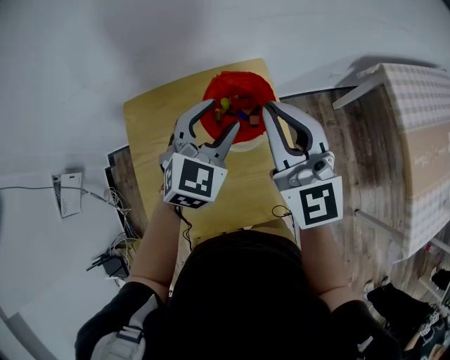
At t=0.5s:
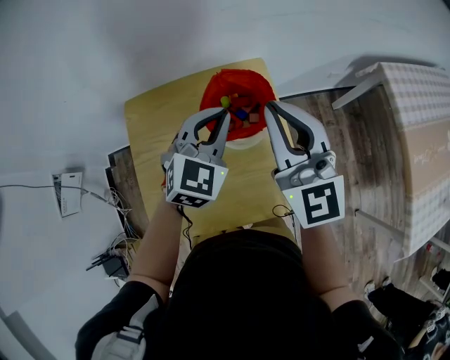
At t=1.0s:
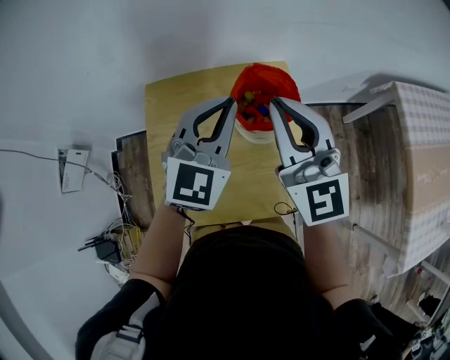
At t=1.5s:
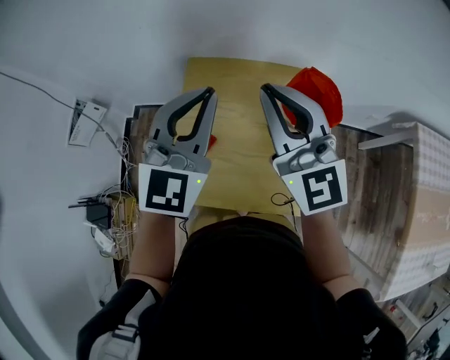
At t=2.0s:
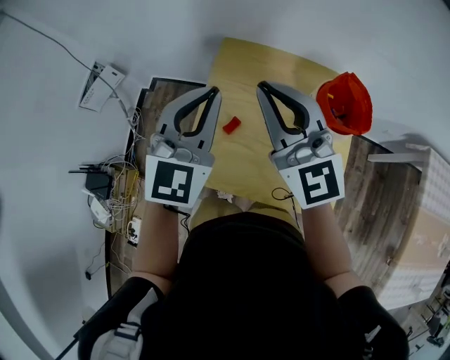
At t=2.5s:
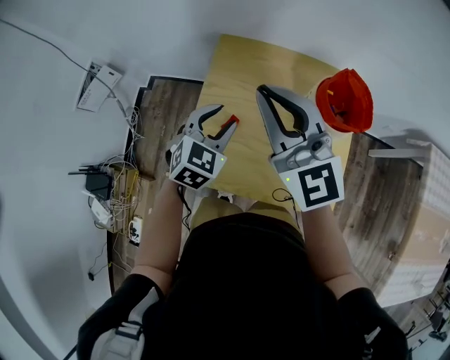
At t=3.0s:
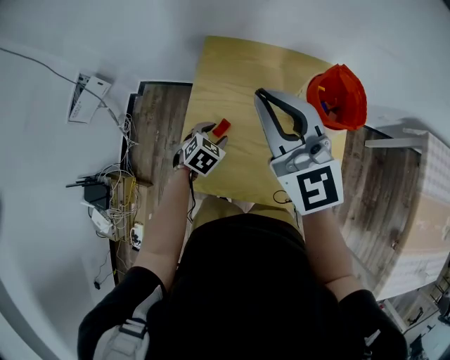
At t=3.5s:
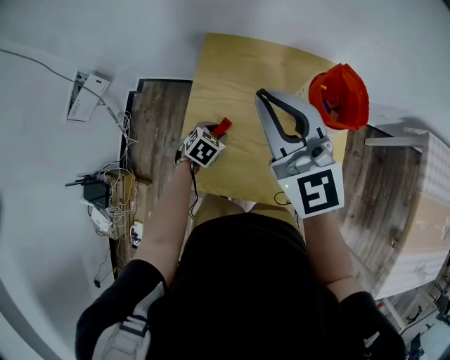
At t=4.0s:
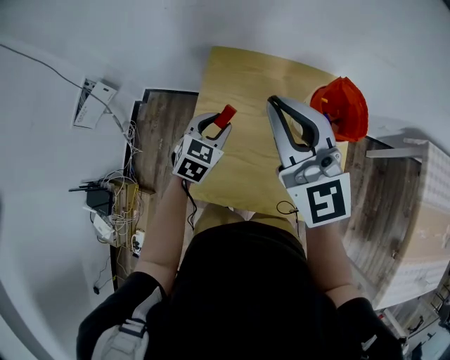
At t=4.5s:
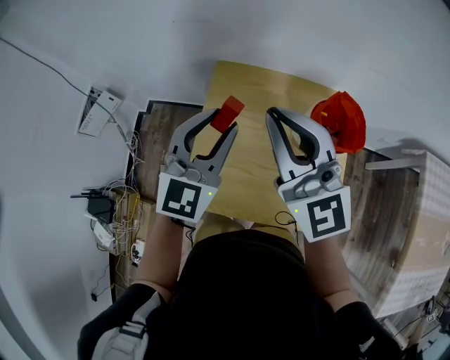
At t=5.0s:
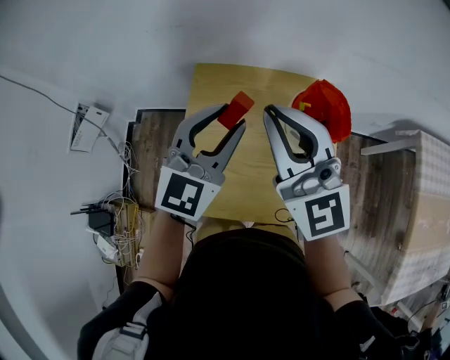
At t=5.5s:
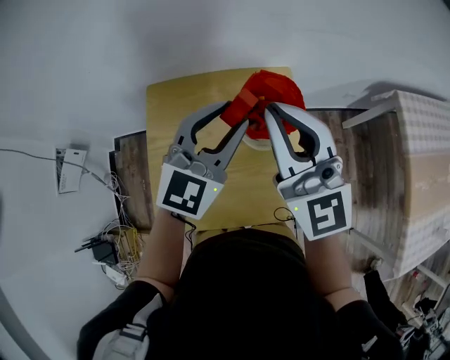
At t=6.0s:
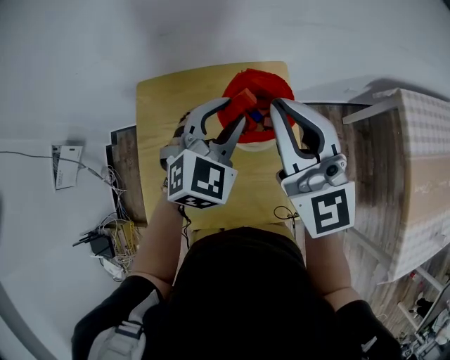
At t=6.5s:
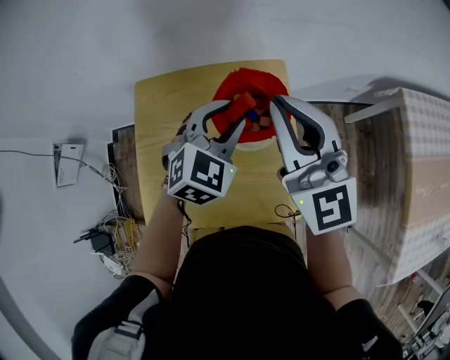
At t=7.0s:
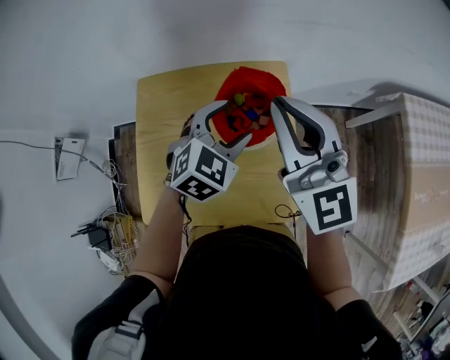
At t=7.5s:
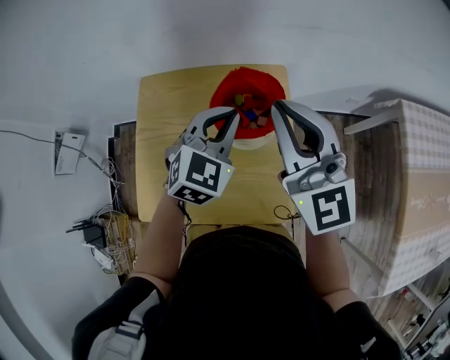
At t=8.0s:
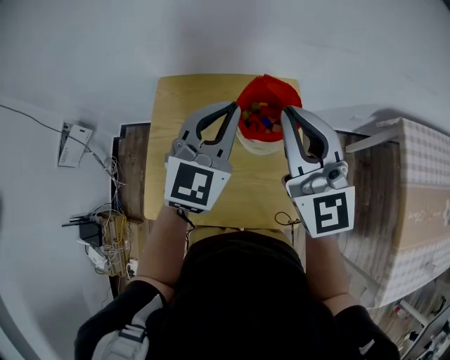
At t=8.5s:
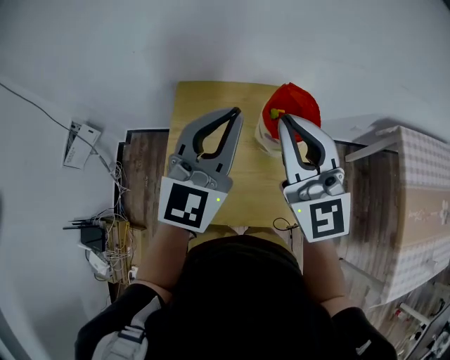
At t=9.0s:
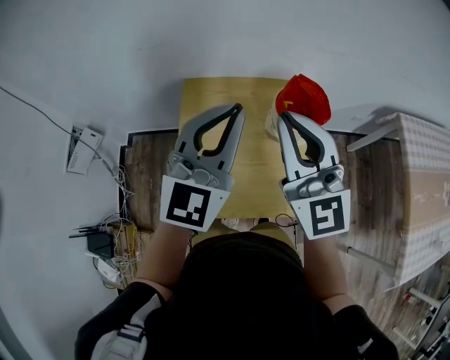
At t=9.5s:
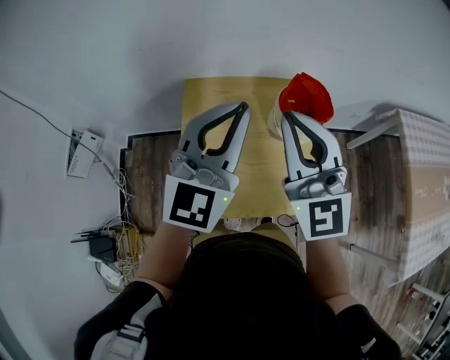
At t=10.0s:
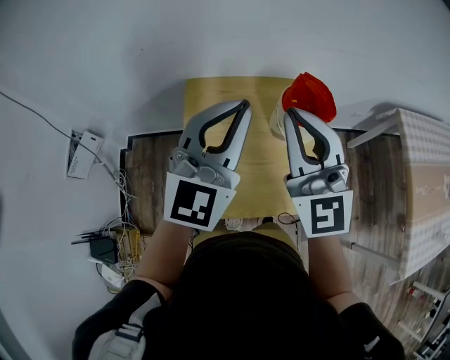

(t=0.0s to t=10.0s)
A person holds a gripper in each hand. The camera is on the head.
t=0.0s - t=2.0s: The left gripper shifts by some 30 cm, swivels roughly 40 degrees, and closes up, while the right gripper moves roughly 30 cm, and changes its angle by some 30 degrees.
t=2.0s - t=4.0s: The left gripper goes some 25 cm downward, points its fingers approximately 30 degrees further downward, and opens up.
t=4.0s - t=6.0s: The right gripper goes about 20 cm to the right, while the left gripper heads to the right and upward, covering some 30 cm, and turns by approximately 30 degrees.
t=6.0s - t=8.0s: The left gripper travels upward by about 10 cm, swivels about 30 degrees, and closes.
t=8.0s - t=10.0s: The right gripper heads to the left and backward, covering about 15 cm; the left gripper goes some 20 cm to the left, backward and upward.

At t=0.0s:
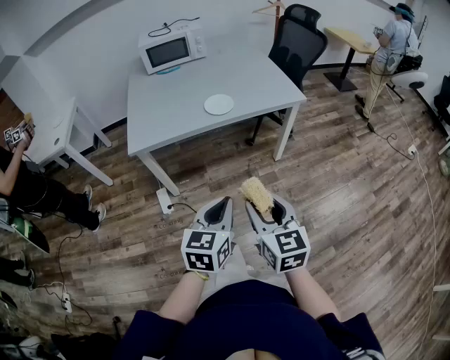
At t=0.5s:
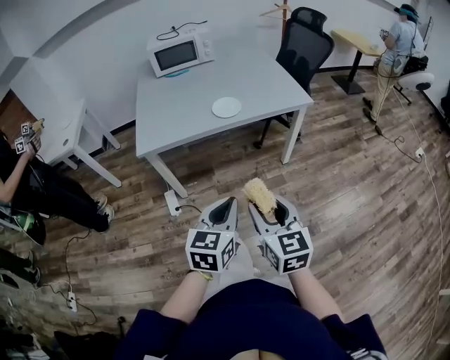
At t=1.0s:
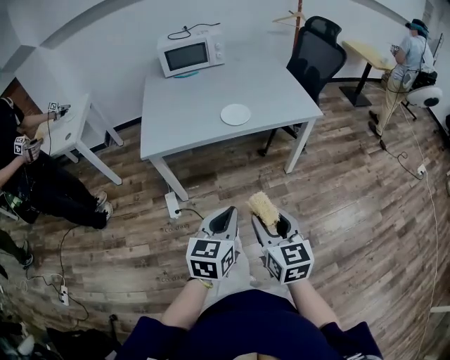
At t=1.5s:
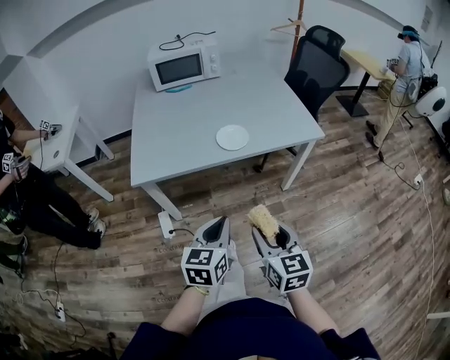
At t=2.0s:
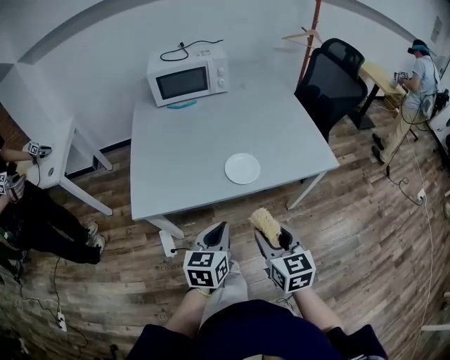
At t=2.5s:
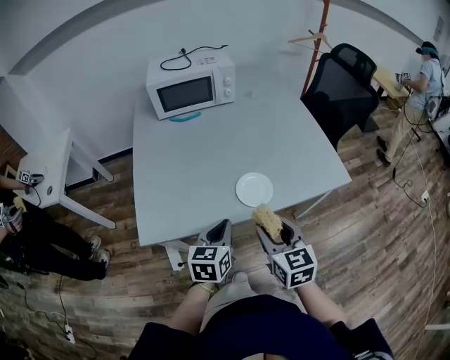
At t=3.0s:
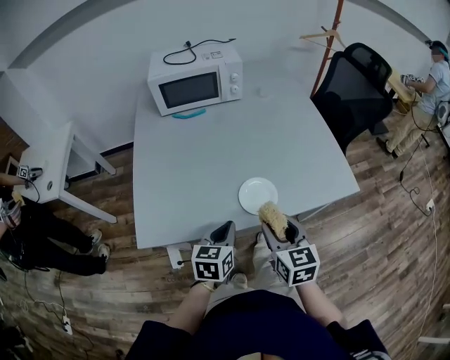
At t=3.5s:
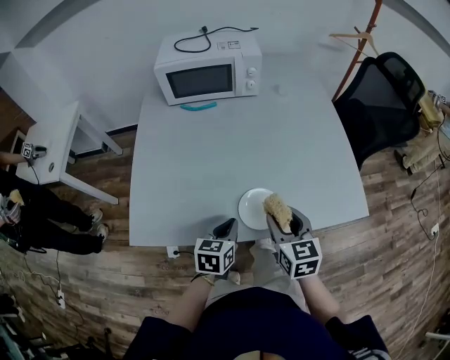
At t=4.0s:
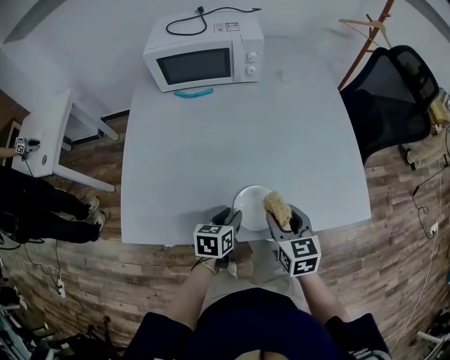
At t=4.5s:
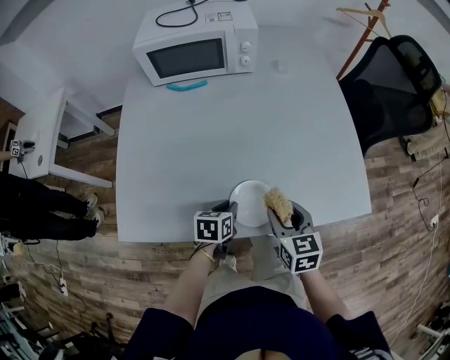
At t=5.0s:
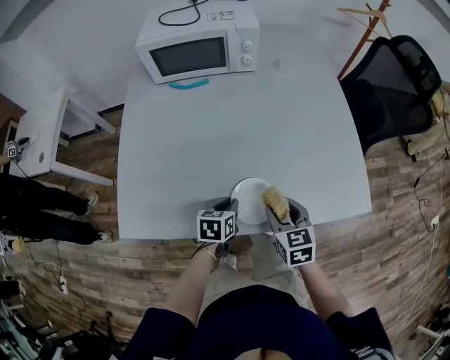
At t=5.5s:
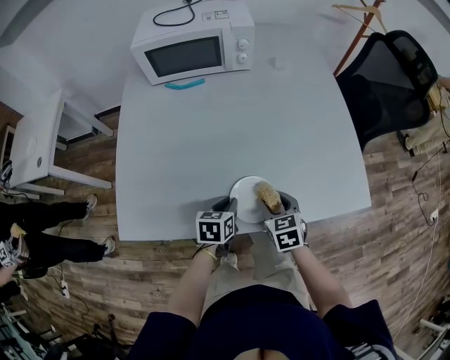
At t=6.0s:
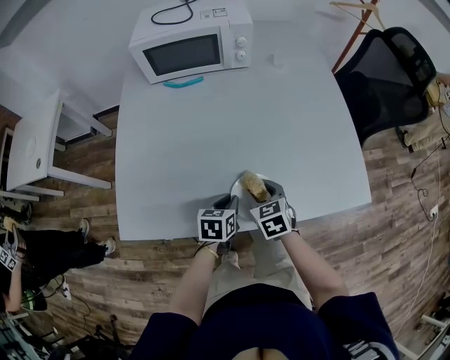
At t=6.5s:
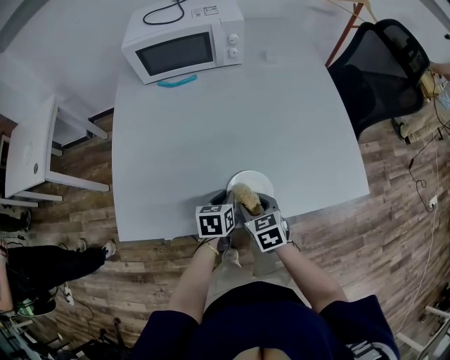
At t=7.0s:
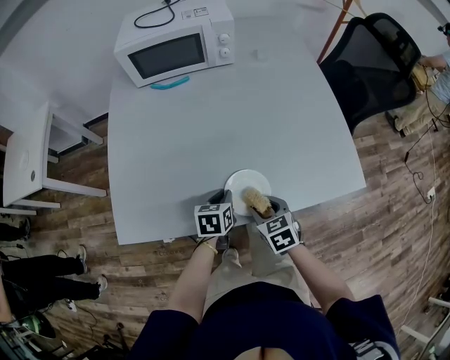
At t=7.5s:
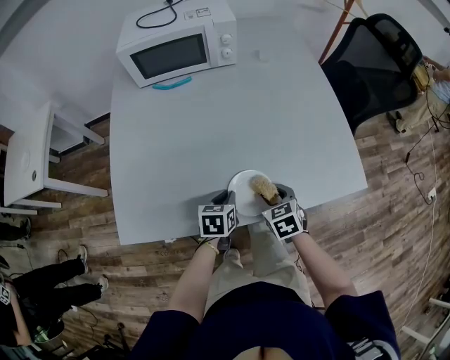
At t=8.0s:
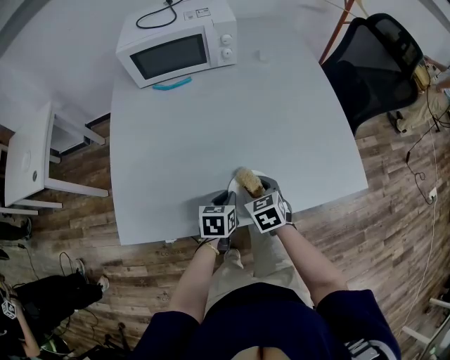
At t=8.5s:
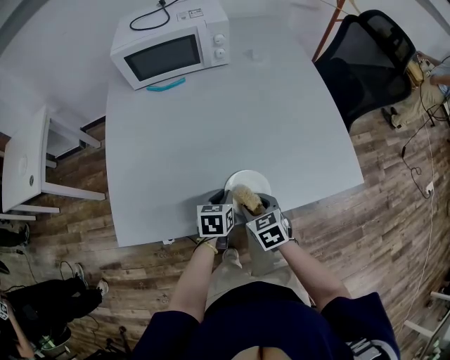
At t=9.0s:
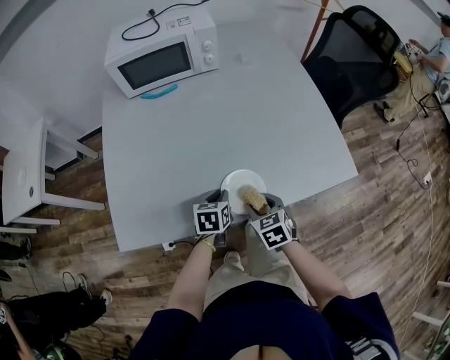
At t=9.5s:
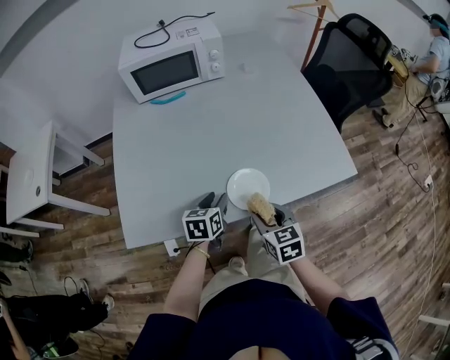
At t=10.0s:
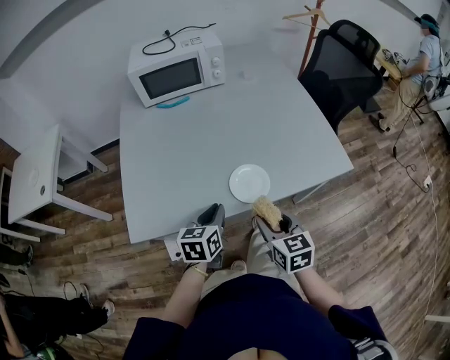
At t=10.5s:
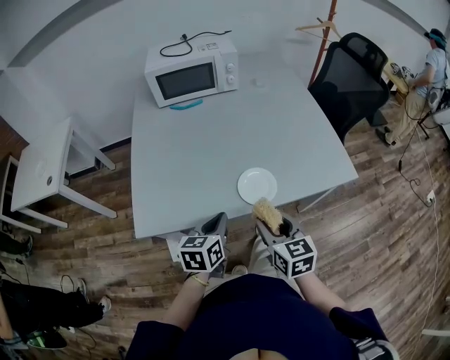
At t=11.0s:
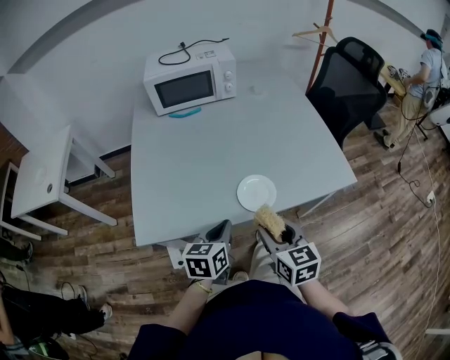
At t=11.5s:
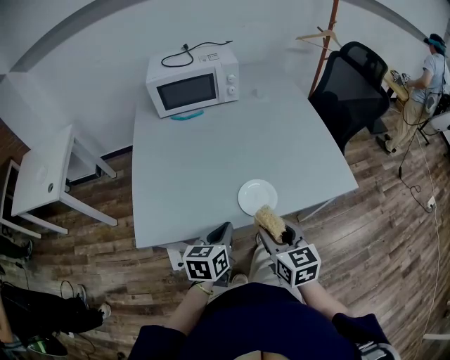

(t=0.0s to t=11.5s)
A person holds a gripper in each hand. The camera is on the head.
t=0.0s - t=2.0s: Both grippers move forward, approximately 30 cm.
t=2.0s - t=4.0s: The left gripper travels forward and downward by roughly 30 cm, swivels roughly 20 degrees, and opens its fingers. Meanwhile the right gripper heads forward, covering some 30 cm.
t=4.0s - t=6.0s: The right gripper travels downward and to the left by roughly 10 cm.
t=6.0s - t=7.5s: The right gripper goes approximately 5 cm to the right.
t=7.5s - t=9.5s: The left gripper ends up some 5 cm from where it was, and opens up. Meanwhile the right gripper moves backward and upward, approximately 10 cm.
t=9.5s - t=11.5s: The right gripper heads upward and backward, covering about 10 cm. Meanwhile the left gripper travels backward and upward by approximately 15 cm, and closes.

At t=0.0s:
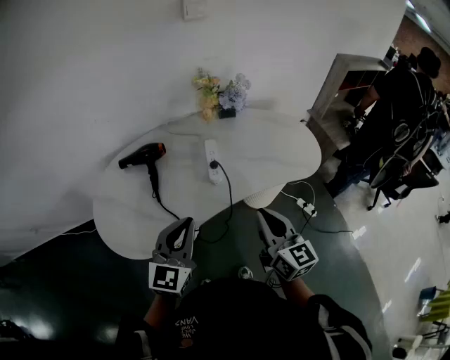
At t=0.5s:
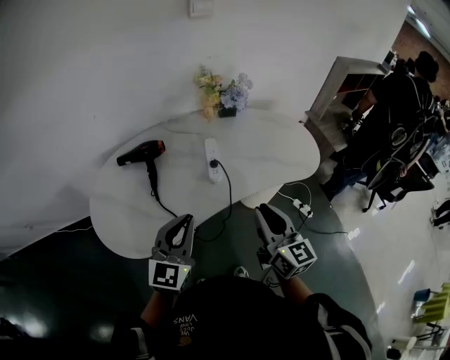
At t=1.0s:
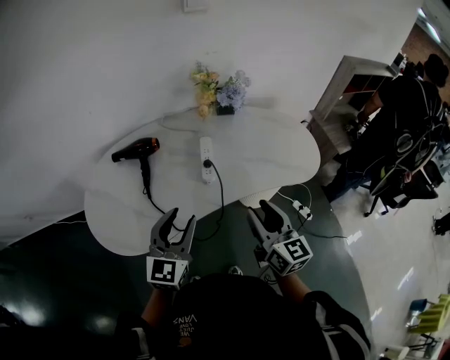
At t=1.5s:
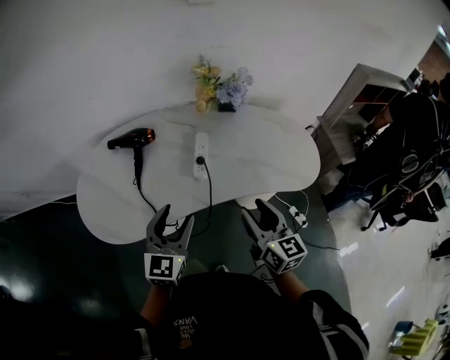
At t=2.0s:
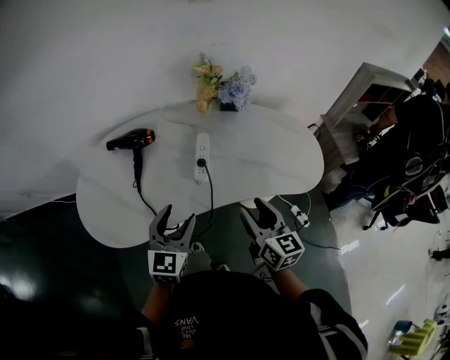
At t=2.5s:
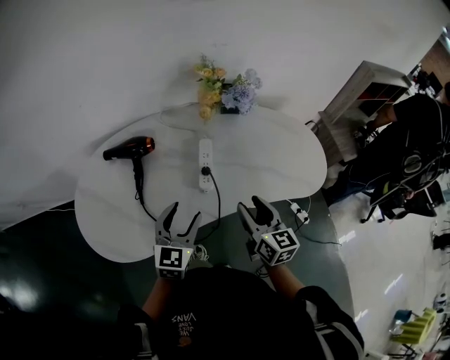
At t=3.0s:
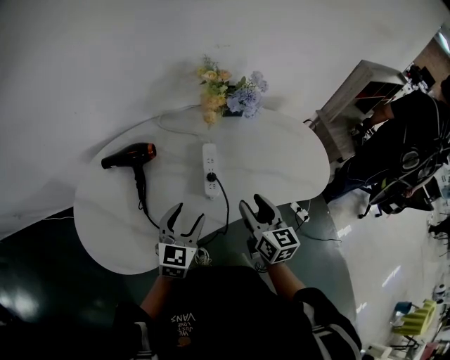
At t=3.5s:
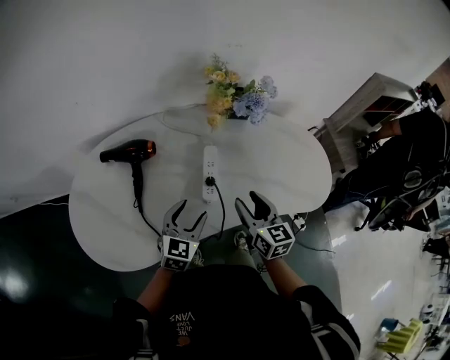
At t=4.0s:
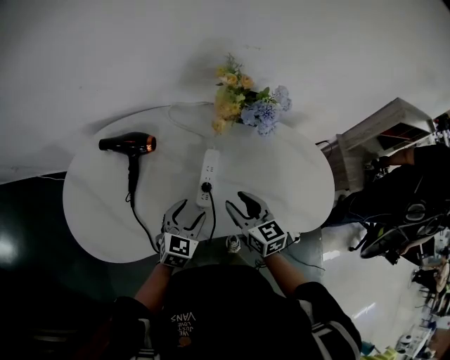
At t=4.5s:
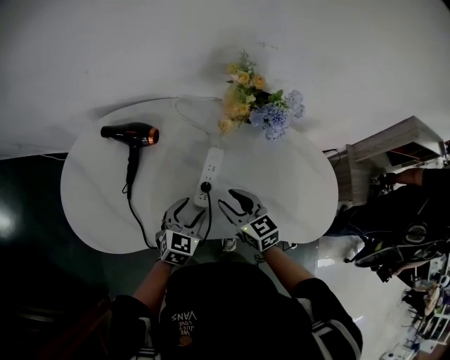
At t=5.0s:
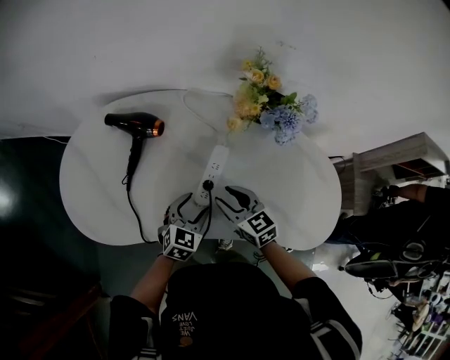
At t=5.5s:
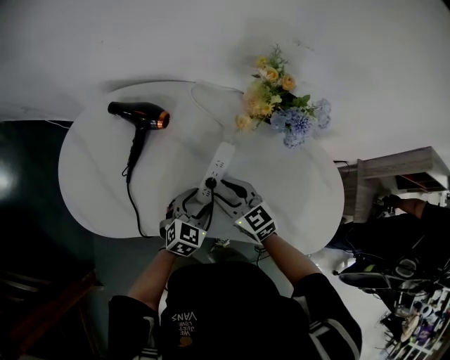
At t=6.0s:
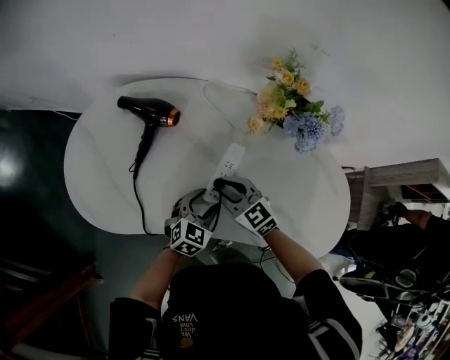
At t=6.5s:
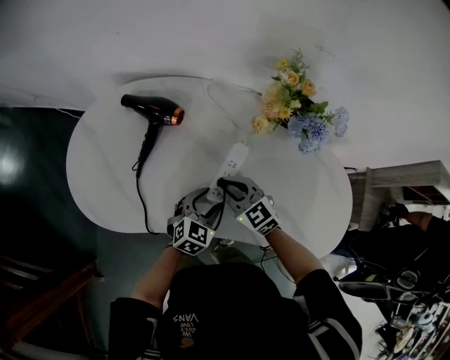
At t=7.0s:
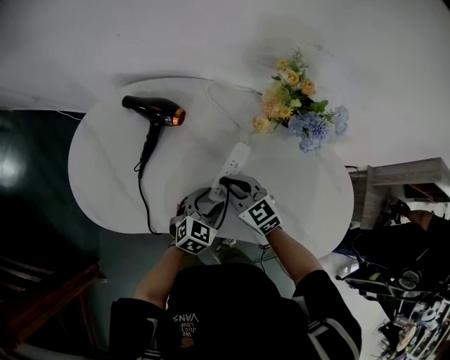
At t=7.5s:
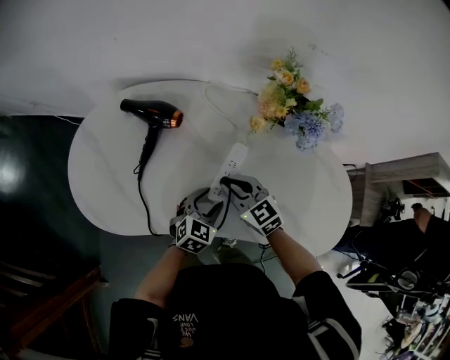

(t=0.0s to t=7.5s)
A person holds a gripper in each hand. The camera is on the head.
t=0.0s - t=2.0s: The left gripper moves downward, forward and to the right, some 15 cm, and opens its fingers; the right gripper is displaced forward, downward and to the right by about 15 cm, and opens up.
t=2.0s - t=4.0s: Both grippers travel together forward and downward, approximately 20 cm. The right gripper rotates approximately 20 degrees.
t=4.0s - t=5.5s: The right gripper travels downward and forward by roughly 10 cm, and changes its angle by approximately 30 degrees, while the left gripper heads downward, covering approximately 5 cm.
t=5.5s - t=7.5s: The right gripper closes up.
